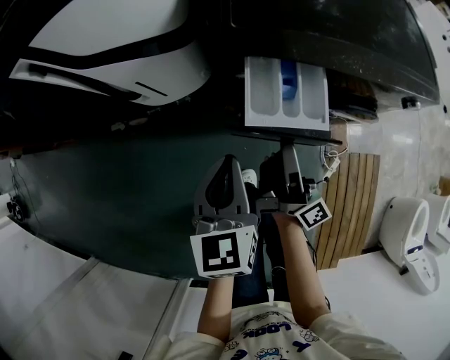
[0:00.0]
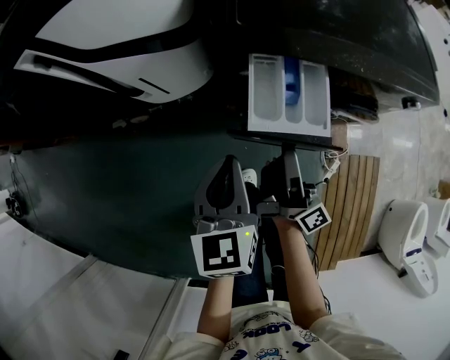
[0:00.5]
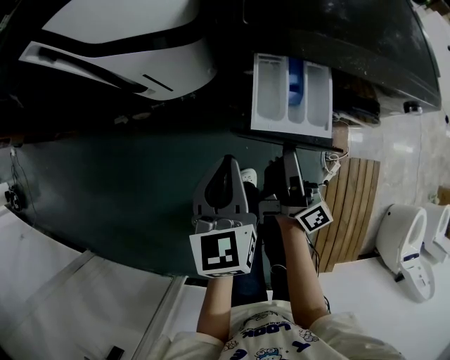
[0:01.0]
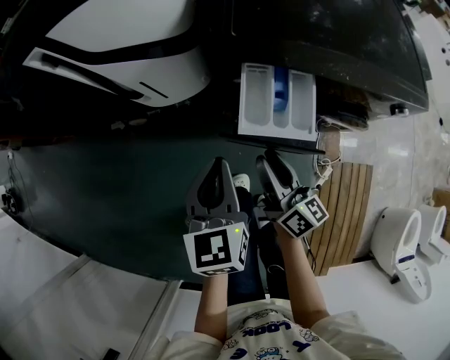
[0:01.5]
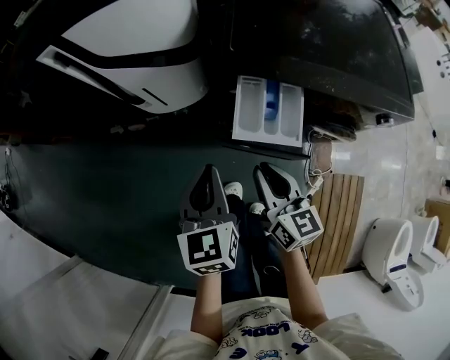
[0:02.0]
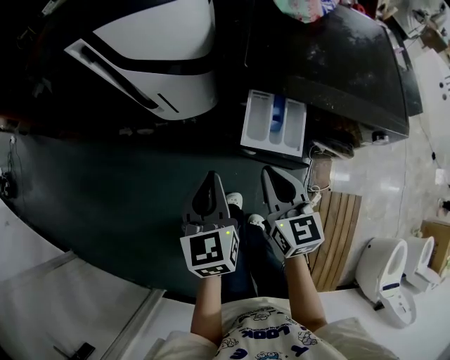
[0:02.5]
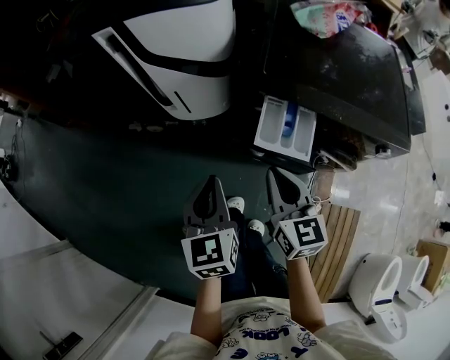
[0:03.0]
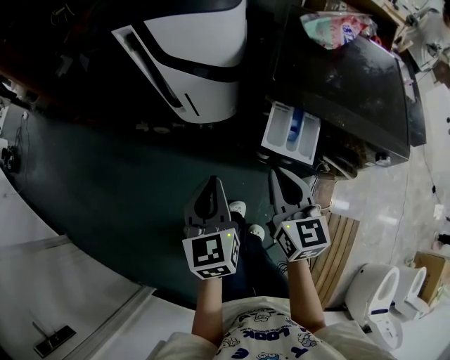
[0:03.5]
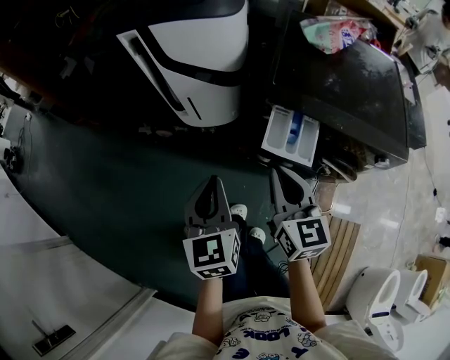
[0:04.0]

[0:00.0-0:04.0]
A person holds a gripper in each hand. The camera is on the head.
0:00.0 to 0:02.0: The right gripper moves approximately 5 cm, and points its fingers approximately 30 degrees further downward. The left gripper shifts by about 5 cm.
0:02.0 to 0:04.0: The right gripper is displaced upward by roughly 15 cm. The left gripper travels upward and to the left by some 10 cm.

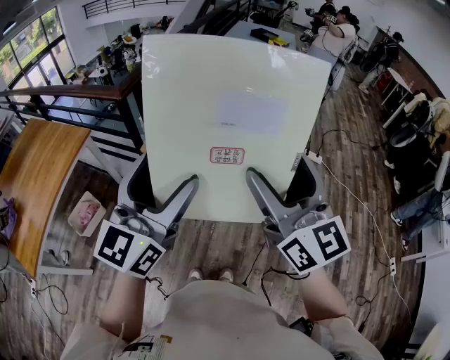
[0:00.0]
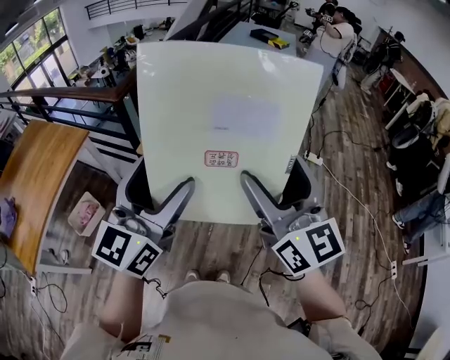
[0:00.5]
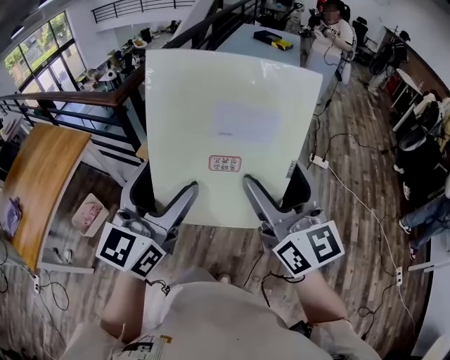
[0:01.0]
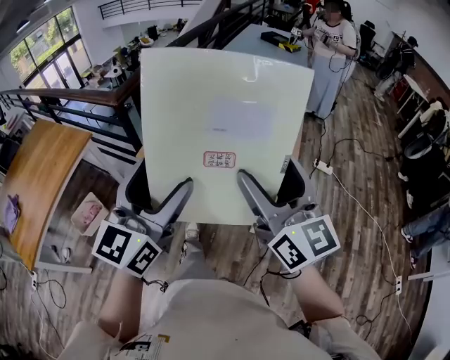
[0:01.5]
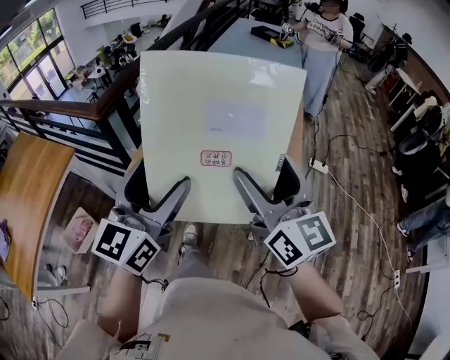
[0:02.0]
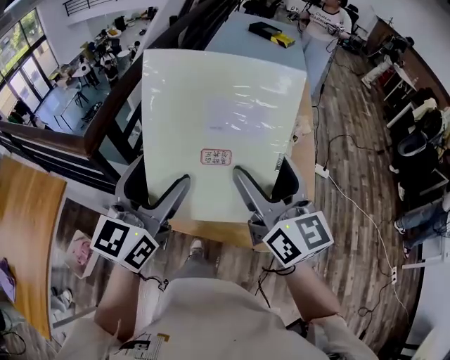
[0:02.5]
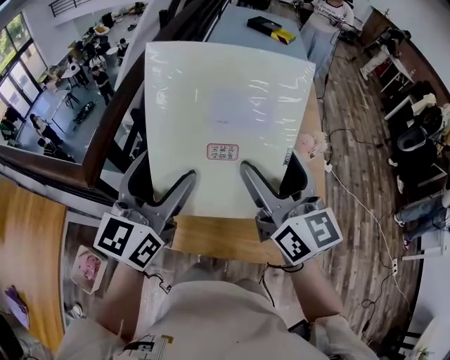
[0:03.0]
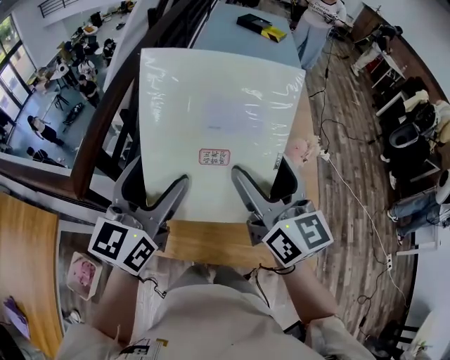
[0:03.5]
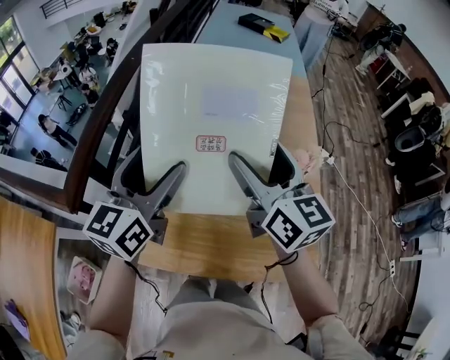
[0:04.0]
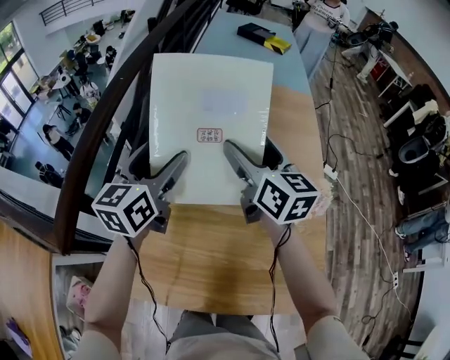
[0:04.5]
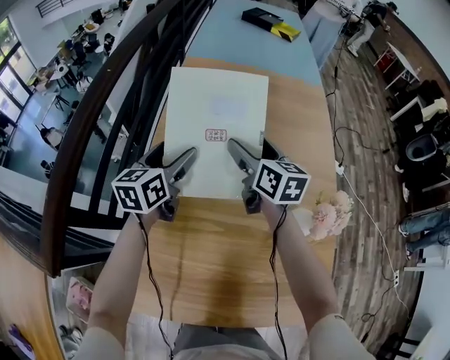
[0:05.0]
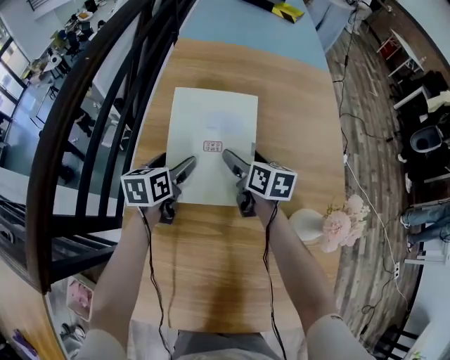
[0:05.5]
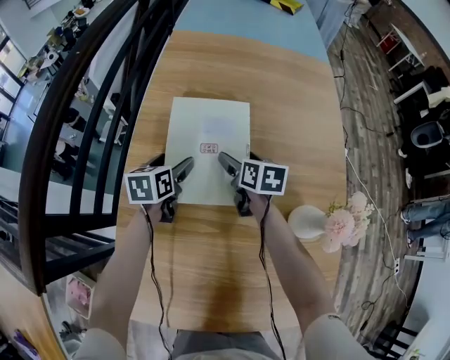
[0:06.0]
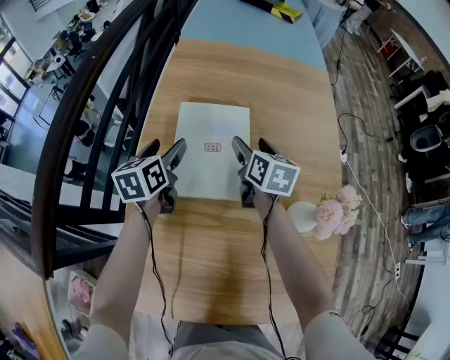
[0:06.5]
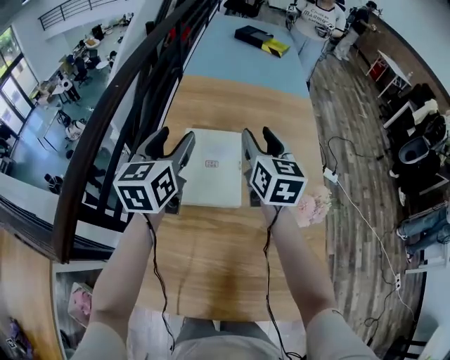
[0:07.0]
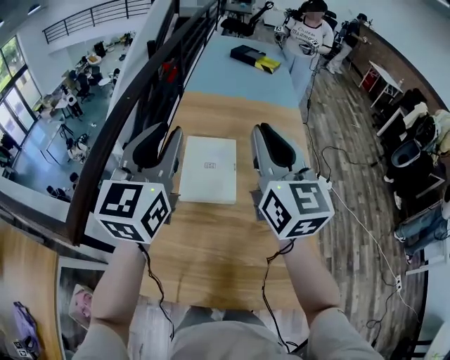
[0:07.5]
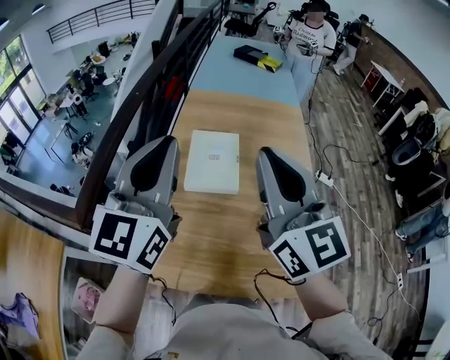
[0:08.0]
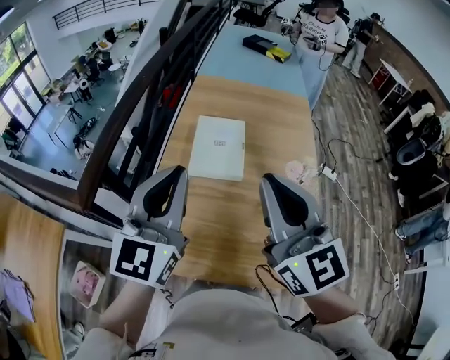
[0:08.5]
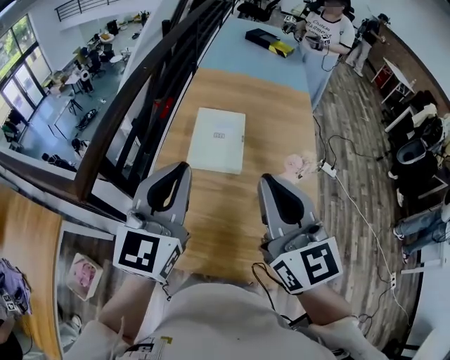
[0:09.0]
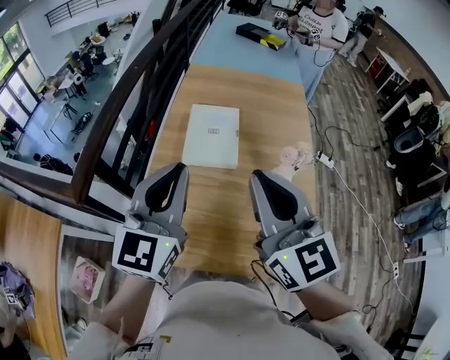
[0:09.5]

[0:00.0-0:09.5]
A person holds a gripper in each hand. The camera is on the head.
0:00.0 to 0:02.0: The two grippers go roughly 20 cm forward and downward.
0:02.0 to 0:04.0: The pair of grippers is taken forward, roughly 50 cm.
0:04.0 to 0:05.5: The two grippers go approximately 50 cm downward and forward. The left gripper points its fingers about 30 degrees further downward. Meanwhile the right gripper swivels approximately 40 degrees.
0:05.5 to 0:07.5: Both grippers travel together upward and backward, approximately 50 cm. The left gripper angles its fingers upward, by roughly 40 degrees, and closes. The right gripper tilts its fingers roughly 40 degrees upward, and closes up.
0:07.5 to 0:09.5: Both grippers move backward, about 20 cm.

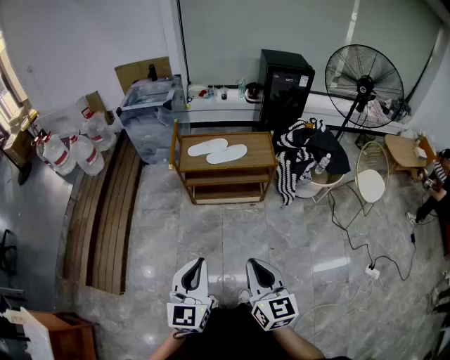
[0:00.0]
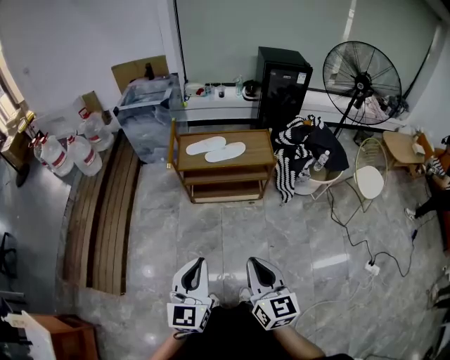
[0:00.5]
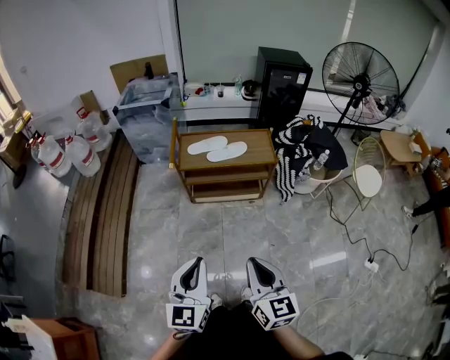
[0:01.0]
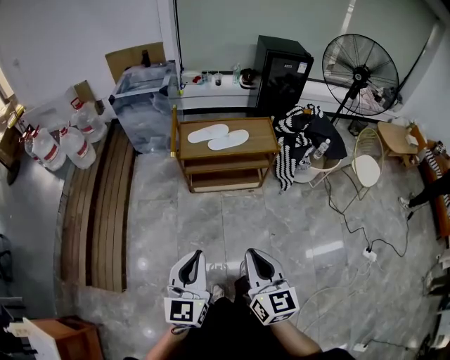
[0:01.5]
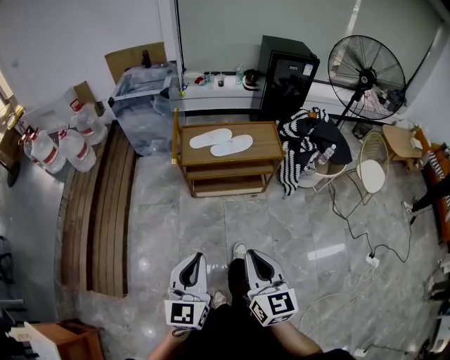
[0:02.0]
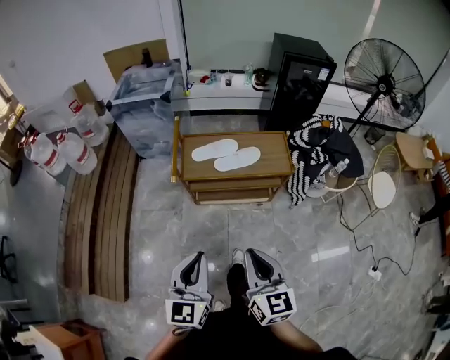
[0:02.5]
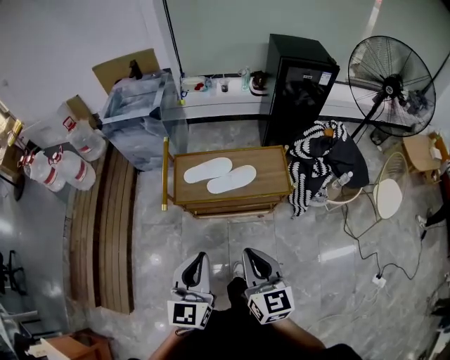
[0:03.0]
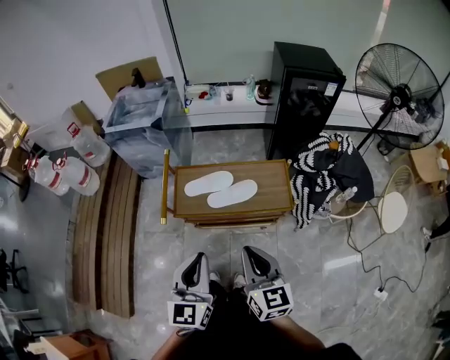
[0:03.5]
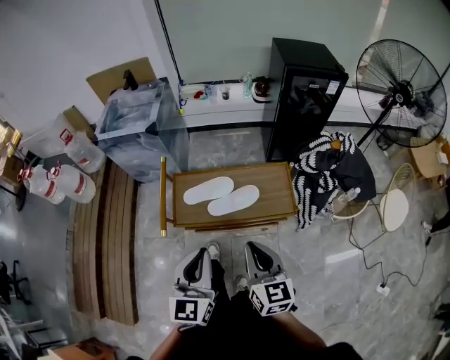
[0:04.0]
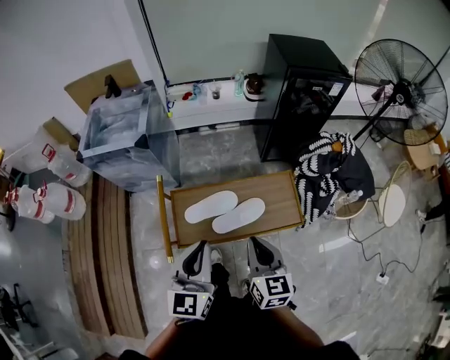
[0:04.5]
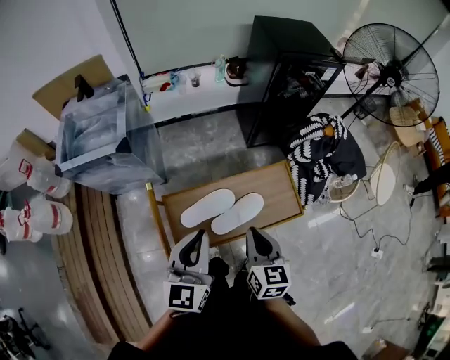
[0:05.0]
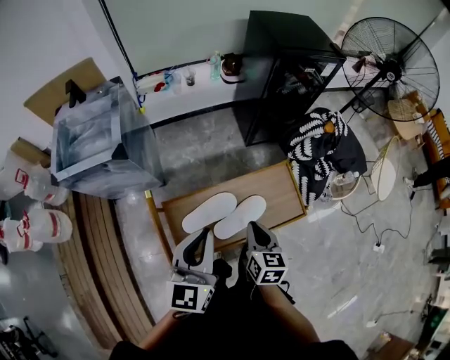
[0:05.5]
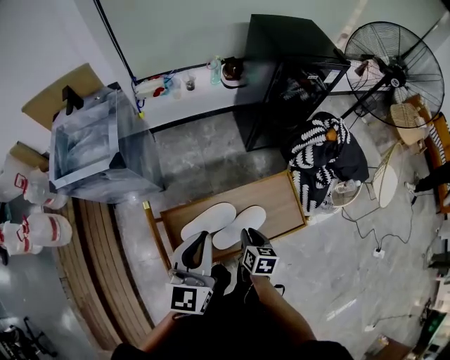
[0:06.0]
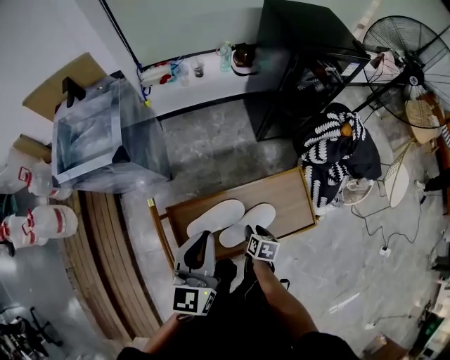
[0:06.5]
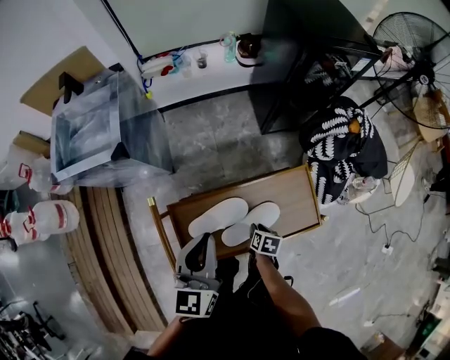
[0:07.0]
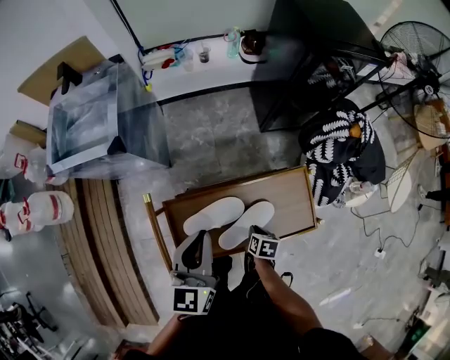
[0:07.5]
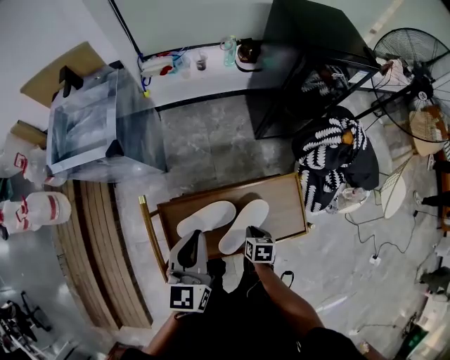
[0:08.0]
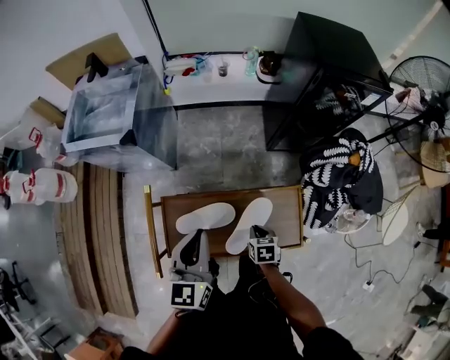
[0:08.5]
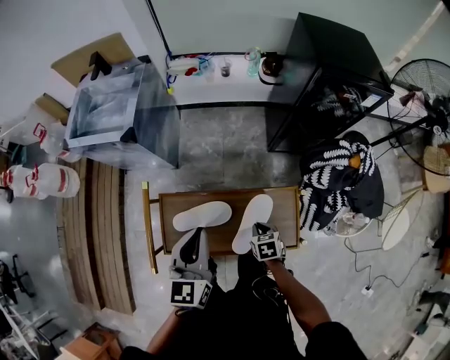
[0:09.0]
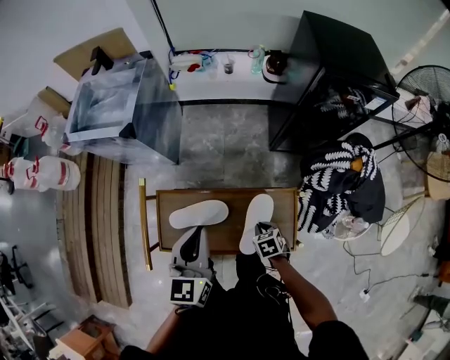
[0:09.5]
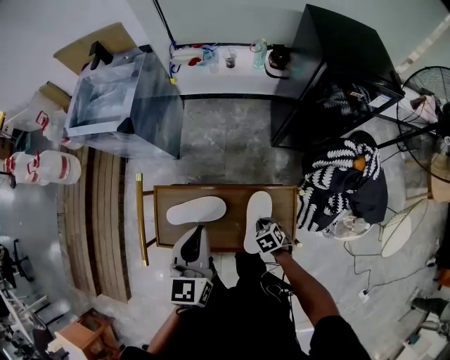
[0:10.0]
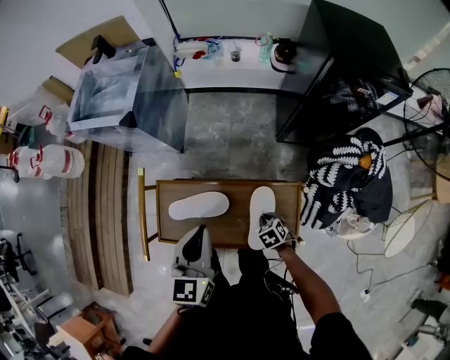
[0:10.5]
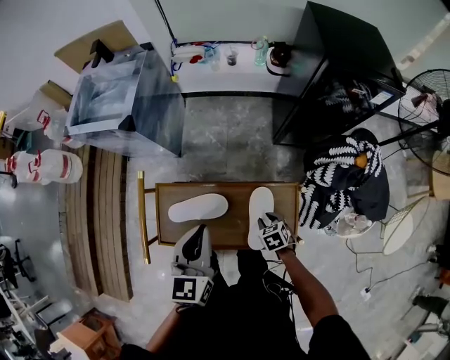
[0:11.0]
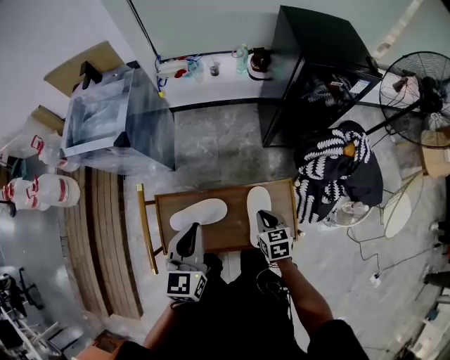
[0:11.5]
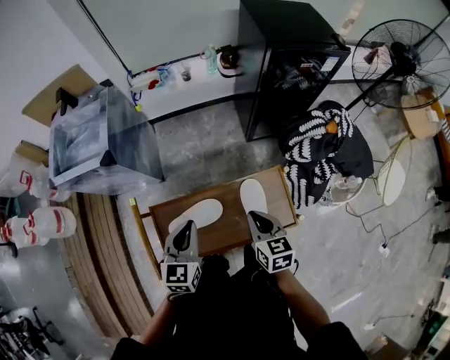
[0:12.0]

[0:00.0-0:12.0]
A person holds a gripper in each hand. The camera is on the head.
0:00.0 to 0:02.0: Both grippers move to the left and forward, about 10 cm.
0:02.0 to 0:04.0: The pair of grippers is taken forward, roughly 40 cm.
0:04.0 to 0:06.0: The left gripper shifts about 30 cm forward. The right gripper moves forward and downward, some 35 cm, and tilts its fingers roughly 30 degrees downward.
0:06.0 to 0:08.0: The right gripper moves downward, approximately 10 cm, rotates roughly 20 degrees, and opens, then closes once more. The left gripper shifts by roughly 5 cm.
0:08.0 to 0:10.0: Both grippers move to the right, some 10 cm. The right gripper twists approximately 40 degrees counterclockwise, seen from behind.
0:10.0 to 0:12.0: The left gripper changes place by approximately 5 cm, and rotates some 20 degrees, while the right gripper goes some 20 cm upward, and points its fingers about 40 degrees further upward.

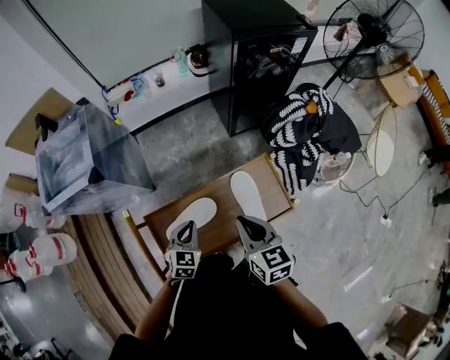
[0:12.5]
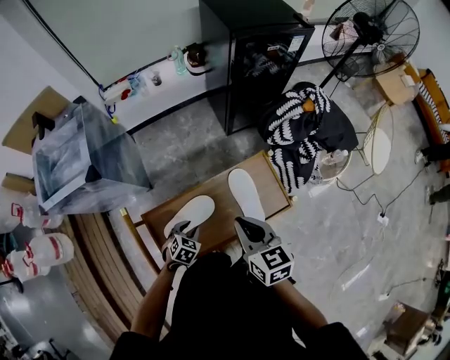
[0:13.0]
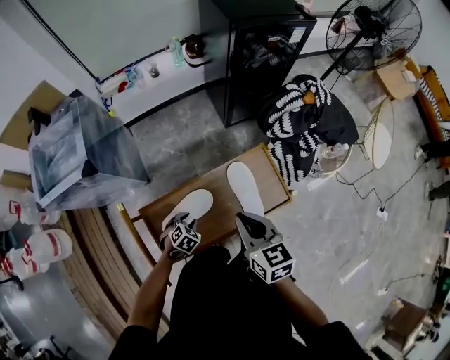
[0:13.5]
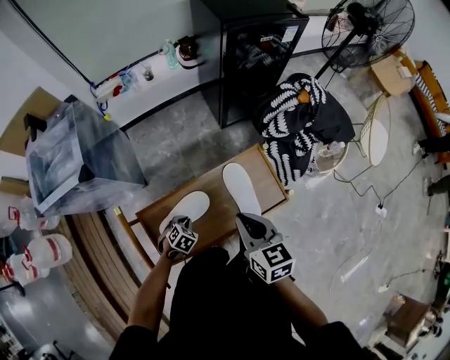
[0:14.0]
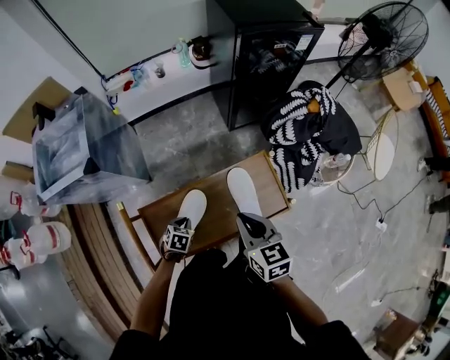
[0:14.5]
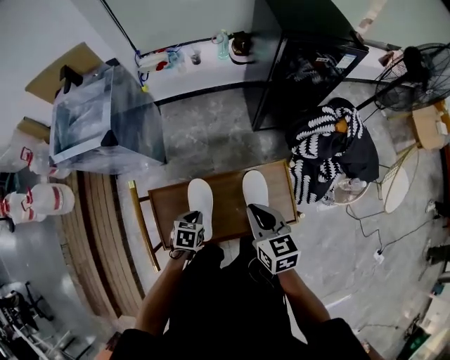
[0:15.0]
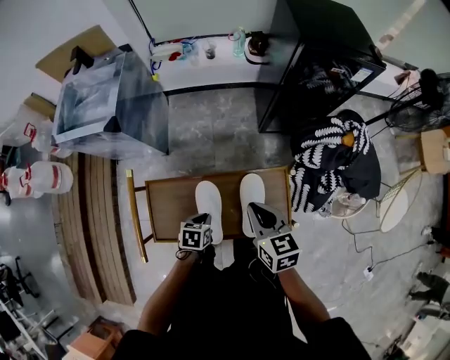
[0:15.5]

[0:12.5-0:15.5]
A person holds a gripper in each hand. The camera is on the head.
0:12.5 to 0:14.0: The left gripper goes roughly 15 cm downward, points its fingers roughly 30 degrees further downward, and opens, then closes once more.
0:14.0 to 0:15.5: The right gripper moves forward, some 10 cm, and turns by roughly 20 degrees. The left gripper heads upward and to the right, covering some 10 cm, and twists approximately 50 degrees counterclockwise, seen from behind.
